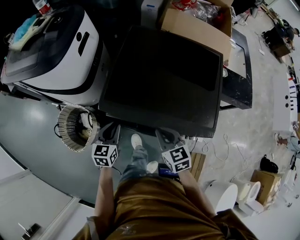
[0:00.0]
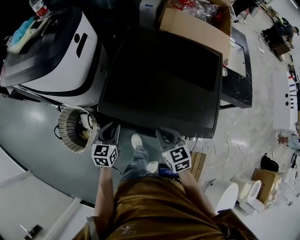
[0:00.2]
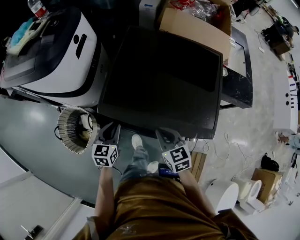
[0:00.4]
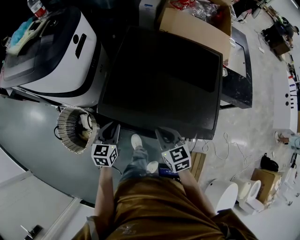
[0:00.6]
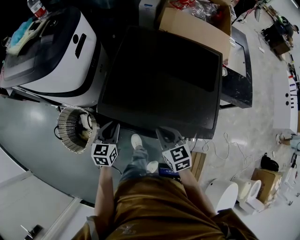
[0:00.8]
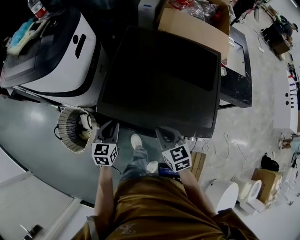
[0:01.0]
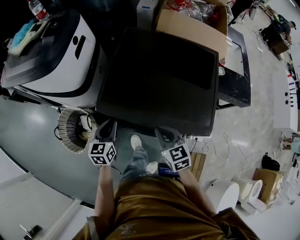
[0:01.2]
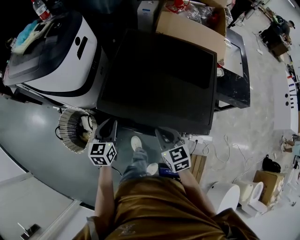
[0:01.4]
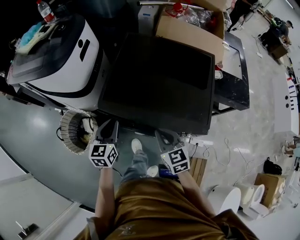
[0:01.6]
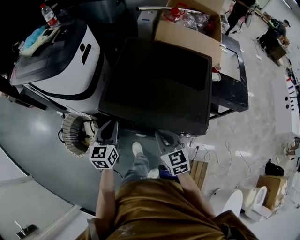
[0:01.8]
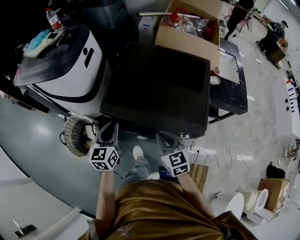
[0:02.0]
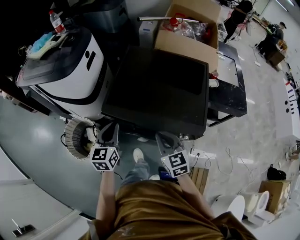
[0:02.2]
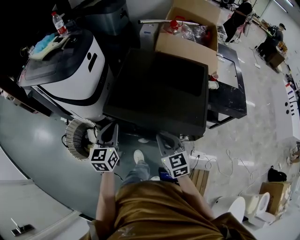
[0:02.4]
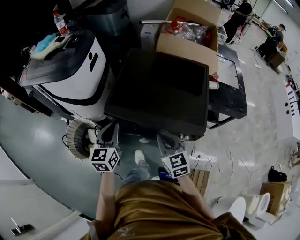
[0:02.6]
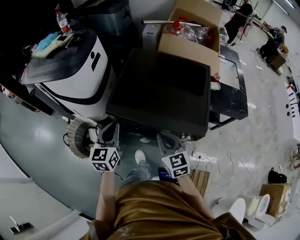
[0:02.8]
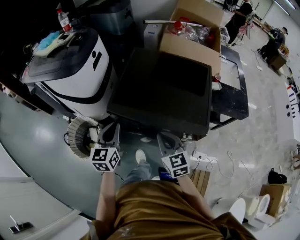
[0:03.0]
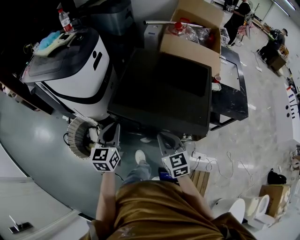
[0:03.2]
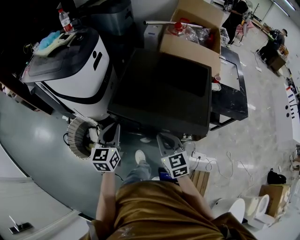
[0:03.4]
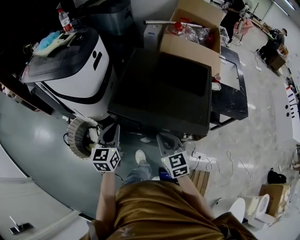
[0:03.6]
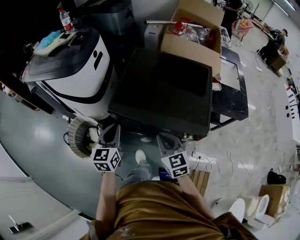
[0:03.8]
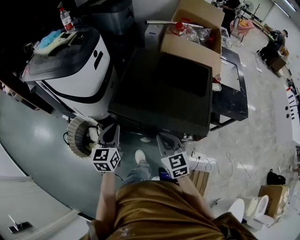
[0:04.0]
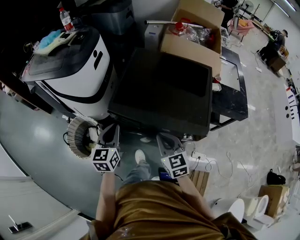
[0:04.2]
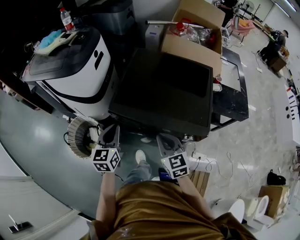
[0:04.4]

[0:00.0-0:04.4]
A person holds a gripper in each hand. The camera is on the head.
0:00.0 to 0:01.4: The left gripper shifts by about 5 cm.
0:01.4 to 0:03.0: The left gripper travels upward and backward by about 15 cm. Meanwhile the right gripper moves upward and backward, some 10 cm.
0:03.0 to 0:04.4: The grippers move only a little.

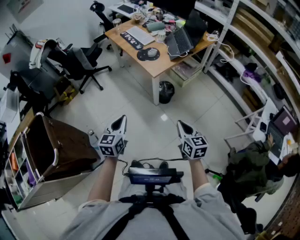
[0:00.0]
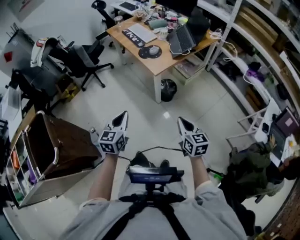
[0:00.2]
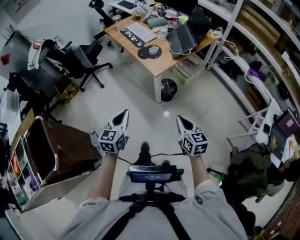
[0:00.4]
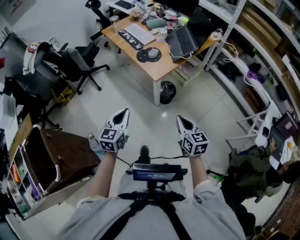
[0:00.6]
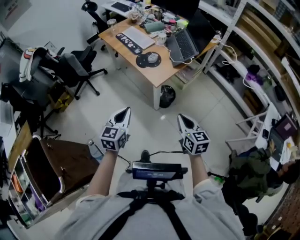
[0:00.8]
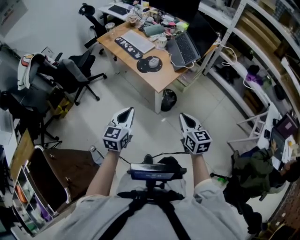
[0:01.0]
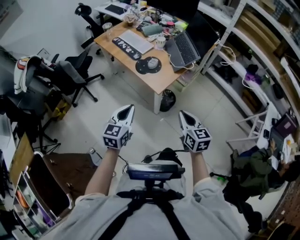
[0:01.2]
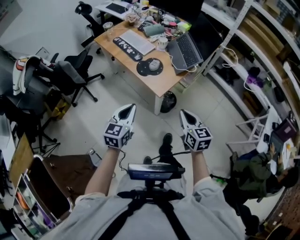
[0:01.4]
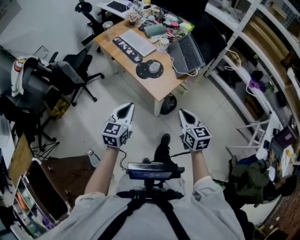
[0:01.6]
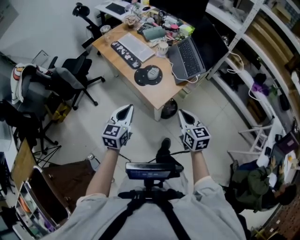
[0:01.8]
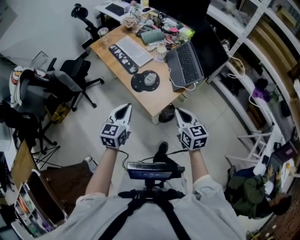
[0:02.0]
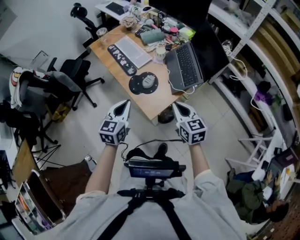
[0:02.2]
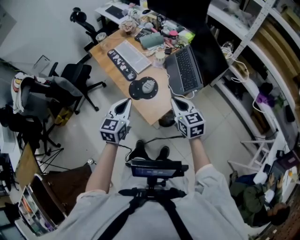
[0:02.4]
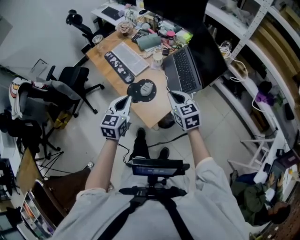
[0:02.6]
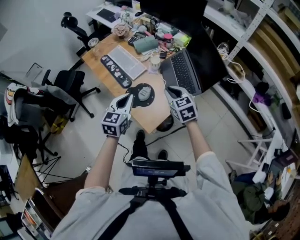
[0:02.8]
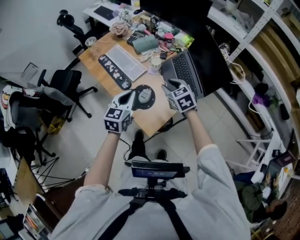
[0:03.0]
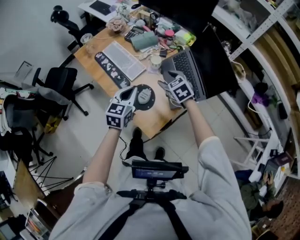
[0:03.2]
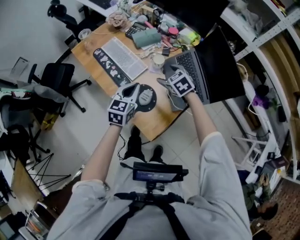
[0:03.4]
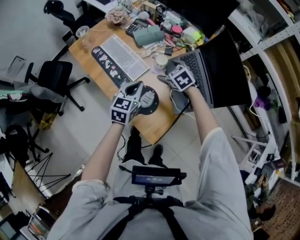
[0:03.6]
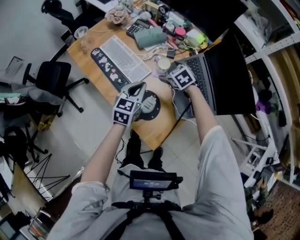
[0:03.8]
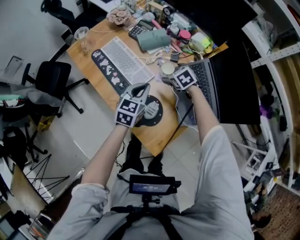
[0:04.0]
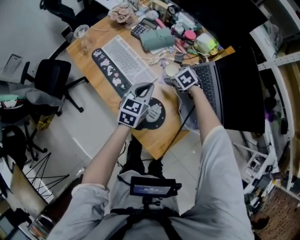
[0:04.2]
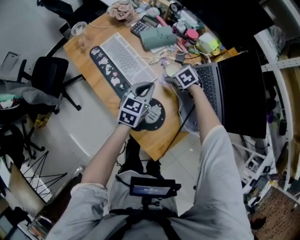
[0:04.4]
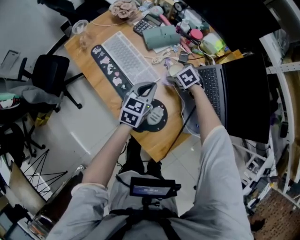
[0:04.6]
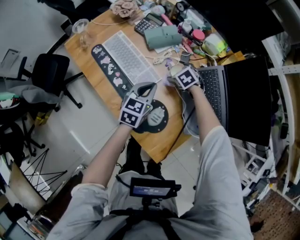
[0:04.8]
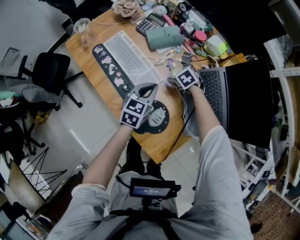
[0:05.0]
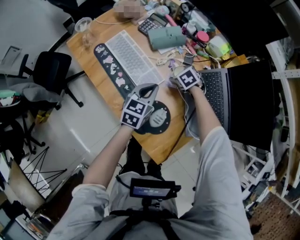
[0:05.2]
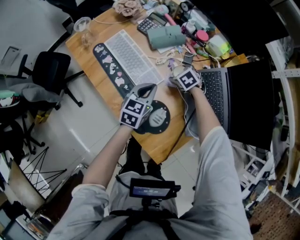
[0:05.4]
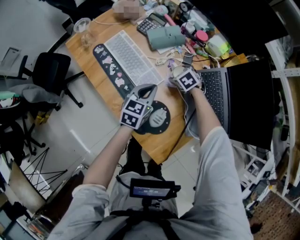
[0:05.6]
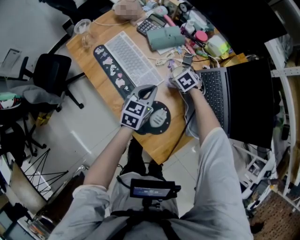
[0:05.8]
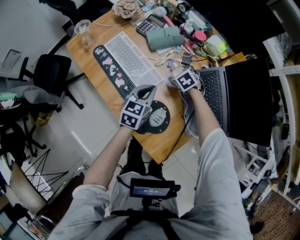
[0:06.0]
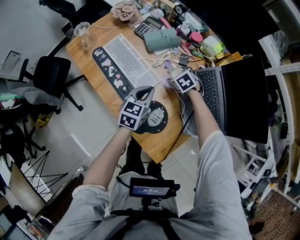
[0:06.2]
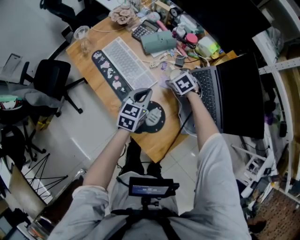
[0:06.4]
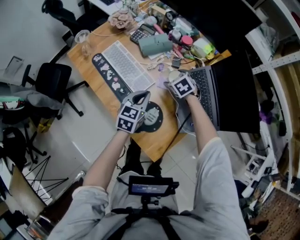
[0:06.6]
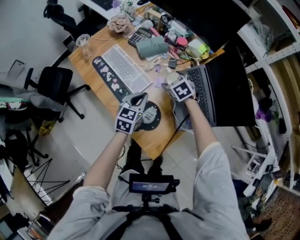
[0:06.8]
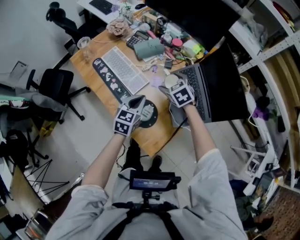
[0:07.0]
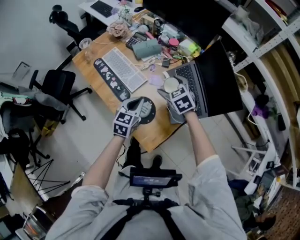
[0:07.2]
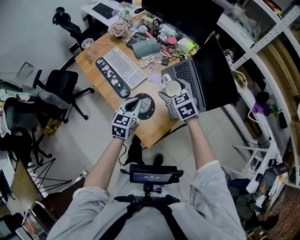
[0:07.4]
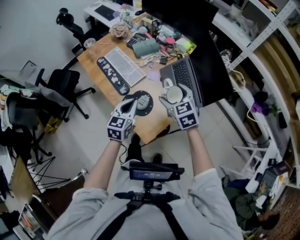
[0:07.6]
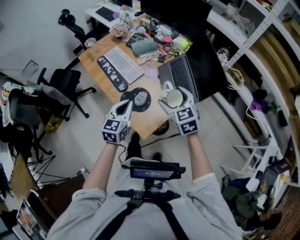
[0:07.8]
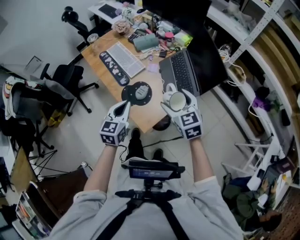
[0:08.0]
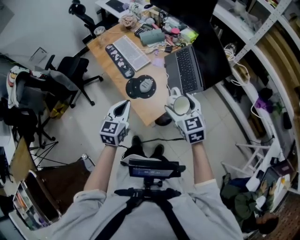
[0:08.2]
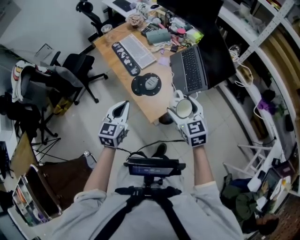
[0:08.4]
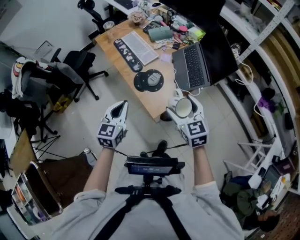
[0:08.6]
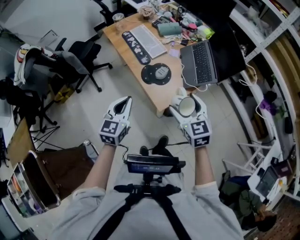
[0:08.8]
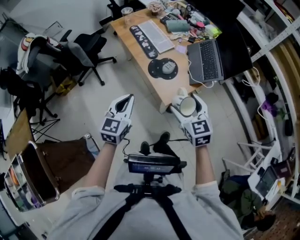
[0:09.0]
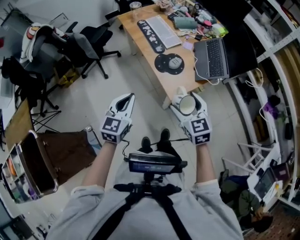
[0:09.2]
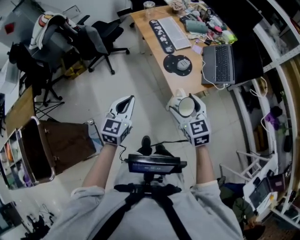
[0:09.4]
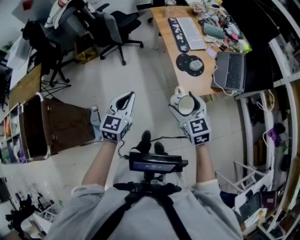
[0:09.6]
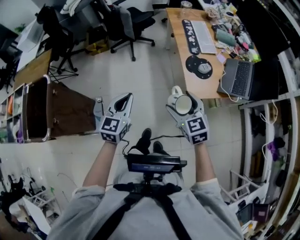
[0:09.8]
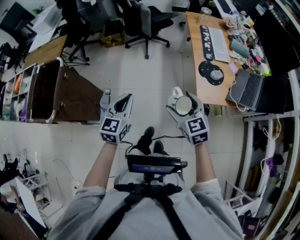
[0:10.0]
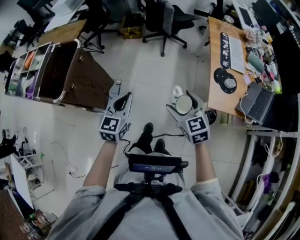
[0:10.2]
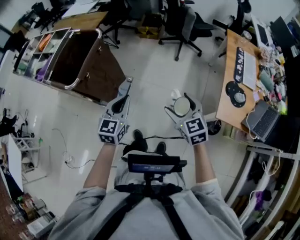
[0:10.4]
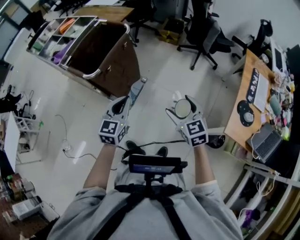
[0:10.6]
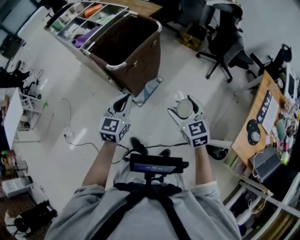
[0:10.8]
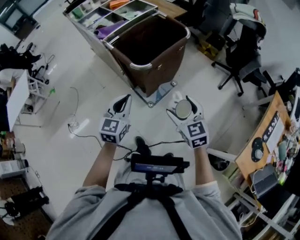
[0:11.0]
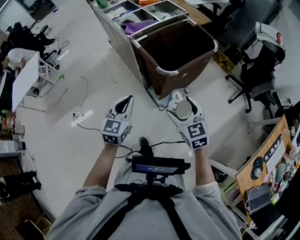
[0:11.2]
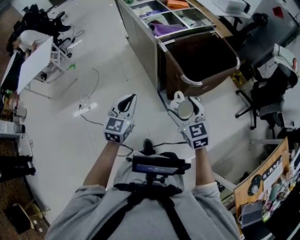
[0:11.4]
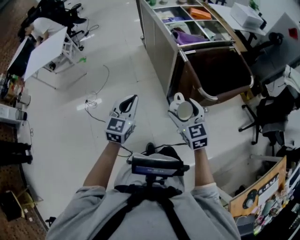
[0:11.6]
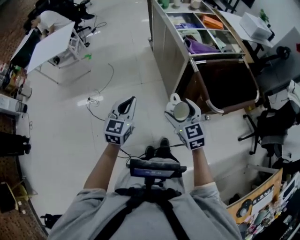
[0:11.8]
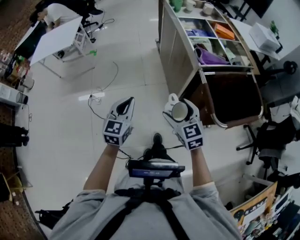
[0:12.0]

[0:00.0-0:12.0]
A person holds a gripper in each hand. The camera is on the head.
0:00.0 to 0:01.6: The grippers both shift forward by roughly 30 cm.
0:01.6 to 0:03.0: Both grippers travel together forward, roughly 35 cm. The right gripper rotates some 30 degrees.
0:03.0 to 0:04.4: The grippers both shift forward and downward by about 30 cm. The right gripper turns by some 30 degrees, and opens up.
0:04.4 to 0:06.0: The grippers move only a little.
0:06.0 to 0:07.6: The left gripper is displaced backward and upward by about 25 cm. The right gripper goes some 40 cm upward and backward, and points its fingers approximately 40 degrees further upward.
0:07.6 to 0:09.0: The left gripper moves backward and to the left, roughly 30 cm. The right gripper is displaced backward by roughly 25 cm.
0:09.0 to 0:10.4: The left gripper moves roughly 40 cm, and swivels about 60 degrees, while the right gripper shifts by about 35 cm, and swivels roughly 60 degrees.
0:10.4 to 0:12.0: The two grippers travel together, about 70 cm. The right gripper turns by some 60 degrees. Meanwhile the left gripper rotates roughly 60 degrees.

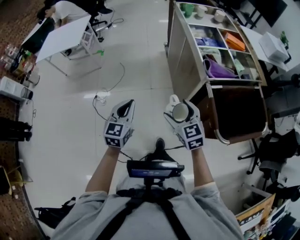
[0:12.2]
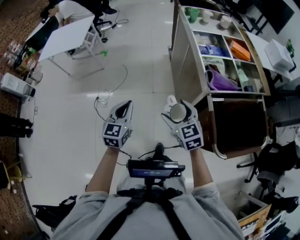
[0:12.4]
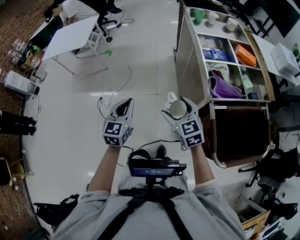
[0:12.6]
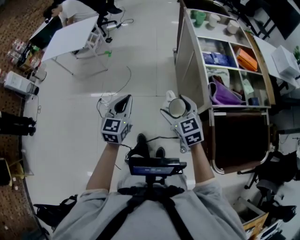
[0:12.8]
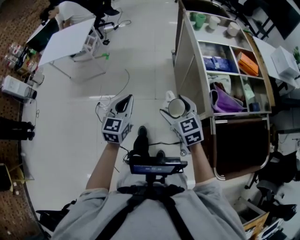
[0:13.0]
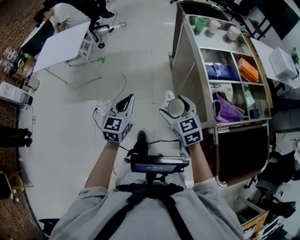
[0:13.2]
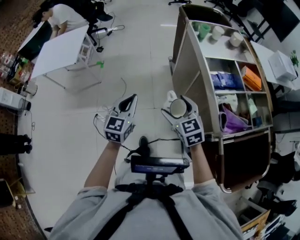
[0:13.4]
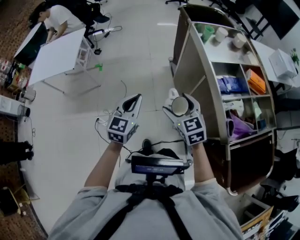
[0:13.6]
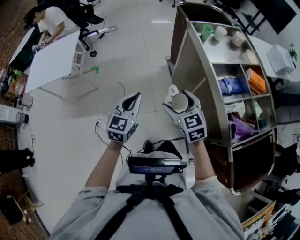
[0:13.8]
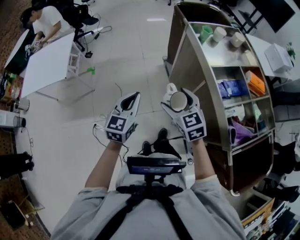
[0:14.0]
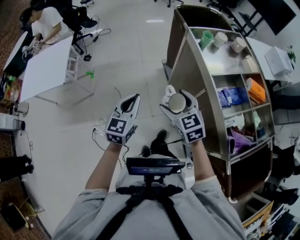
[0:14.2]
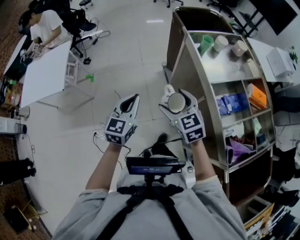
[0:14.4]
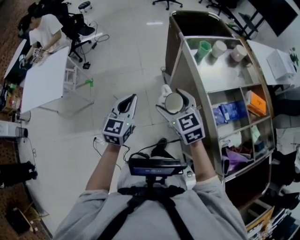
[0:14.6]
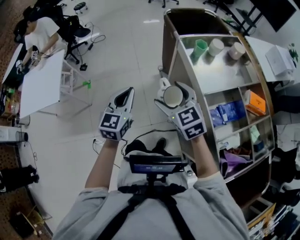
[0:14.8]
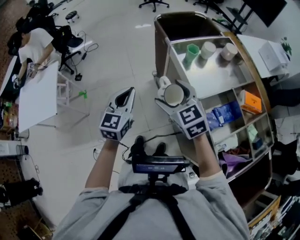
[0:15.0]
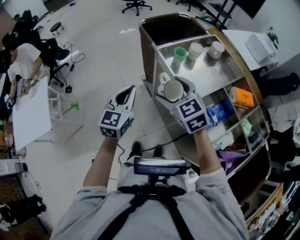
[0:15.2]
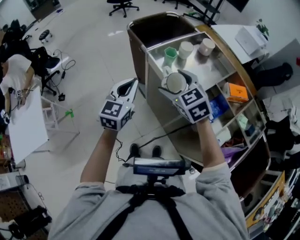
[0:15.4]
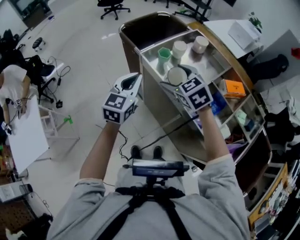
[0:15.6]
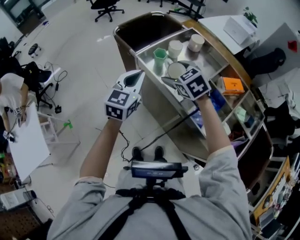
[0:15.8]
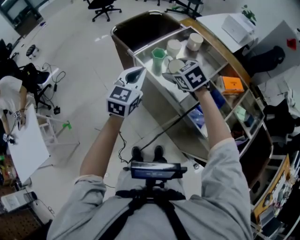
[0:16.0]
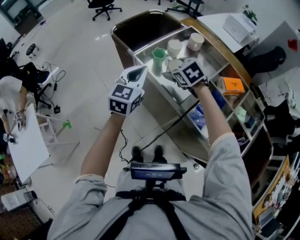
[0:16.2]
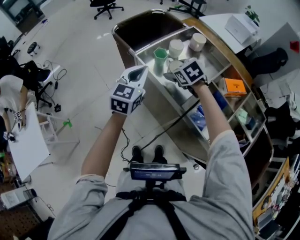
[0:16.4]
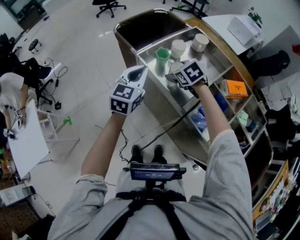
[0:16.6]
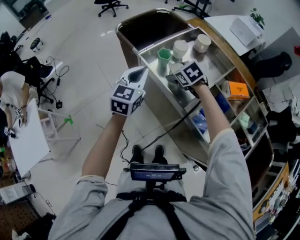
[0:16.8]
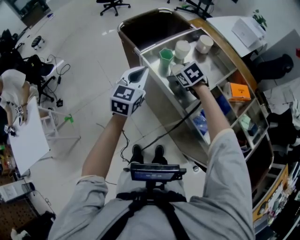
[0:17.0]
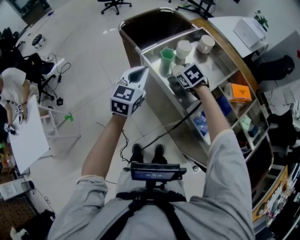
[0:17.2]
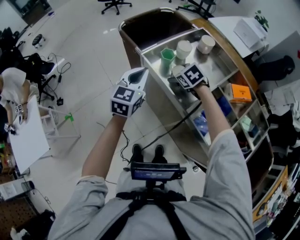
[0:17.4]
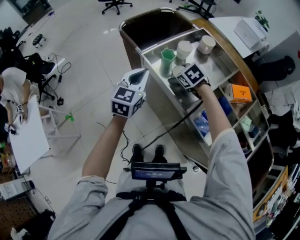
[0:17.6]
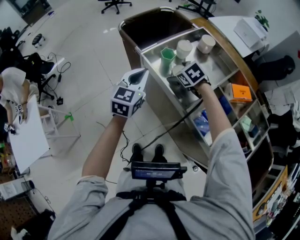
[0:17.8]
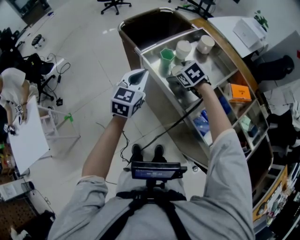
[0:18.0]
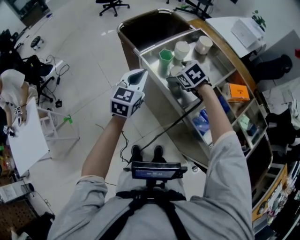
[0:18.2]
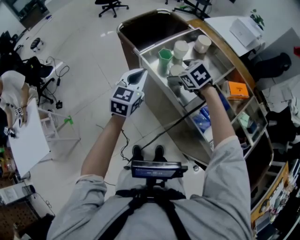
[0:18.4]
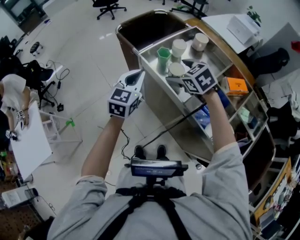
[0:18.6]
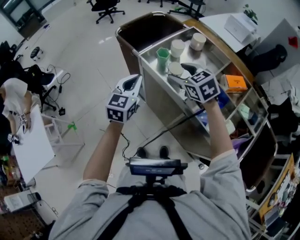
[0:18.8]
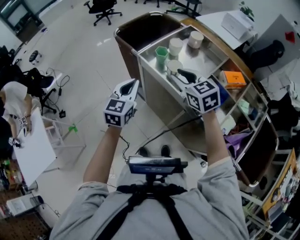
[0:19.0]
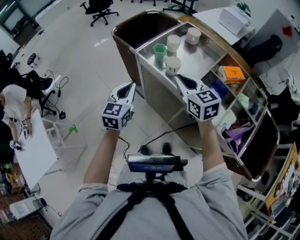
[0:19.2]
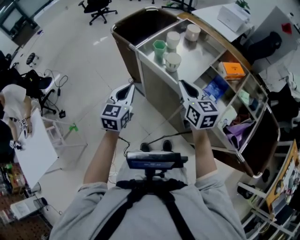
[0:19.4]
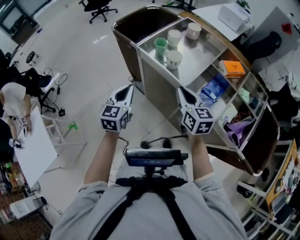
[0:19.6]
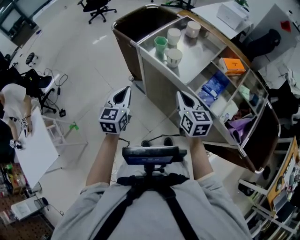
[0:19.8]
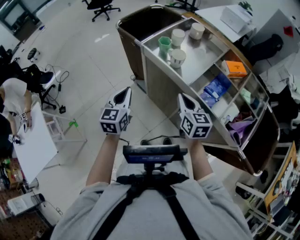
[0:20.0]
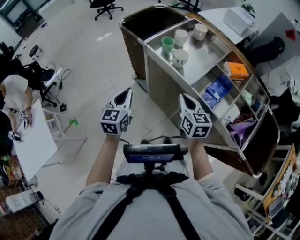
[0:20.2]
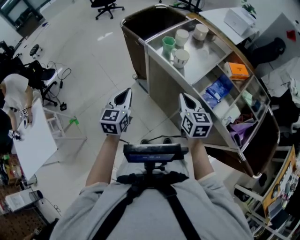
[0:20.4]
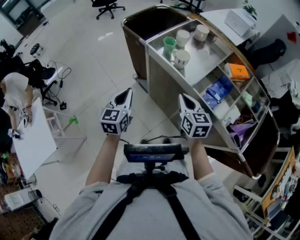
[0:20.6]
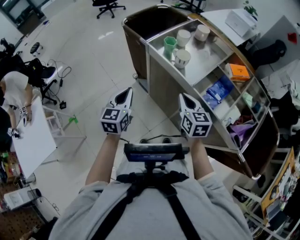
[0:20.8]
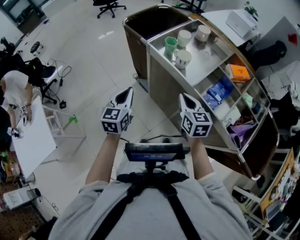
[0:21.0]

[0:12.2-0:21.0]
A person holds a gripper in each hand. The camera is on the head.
0:12.2 to 0:13.6: Both grippers move forward, some 35 cm.
0:13.6 to 0:15.2: The two grippers go roughly 30 cm forward.
0:15.2 to 0:16.6: The right gripper heads forward, to the right and downward, covering about 25 cm, and changes its angle by some 30 degrees. The left gripper heads forward and to the right, covering about 15 cm.
0:16.6 to 0:18.0: The grippers make only small movements.
0:18.0 to 0:19.6: The right gripper goes about 20 cm backward, points its fingers about 40 degrees further upward, and closes, while the left gripper goes some 15 cm backward and to the left.
0:19.6 to 0:21.0: The left gripper ends up approximately 5 cm from where it was.
